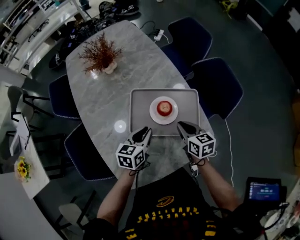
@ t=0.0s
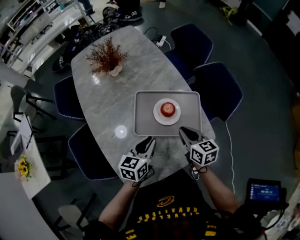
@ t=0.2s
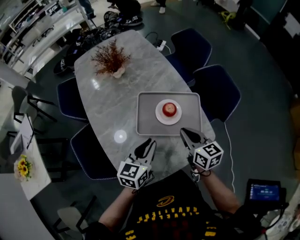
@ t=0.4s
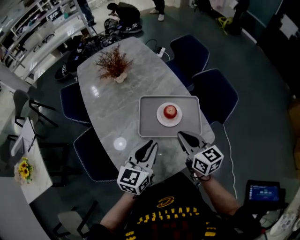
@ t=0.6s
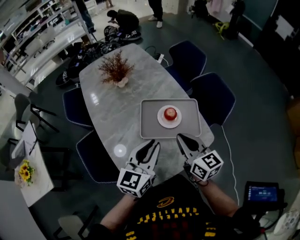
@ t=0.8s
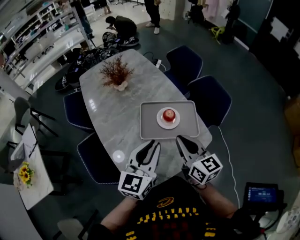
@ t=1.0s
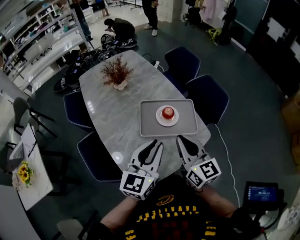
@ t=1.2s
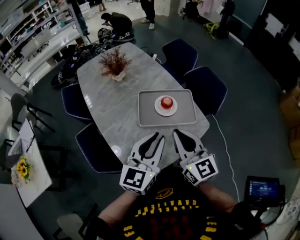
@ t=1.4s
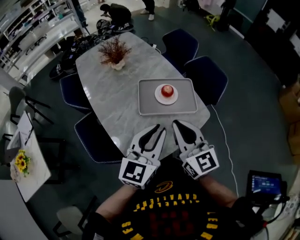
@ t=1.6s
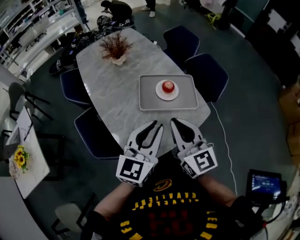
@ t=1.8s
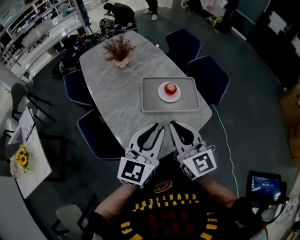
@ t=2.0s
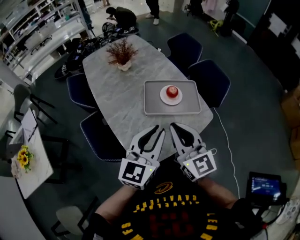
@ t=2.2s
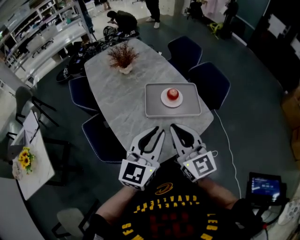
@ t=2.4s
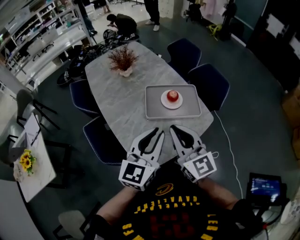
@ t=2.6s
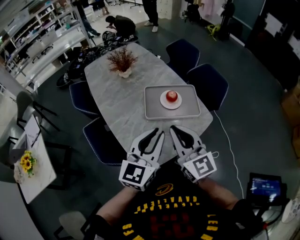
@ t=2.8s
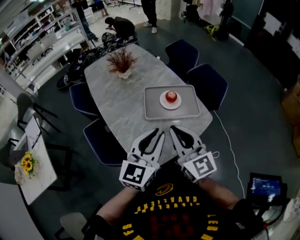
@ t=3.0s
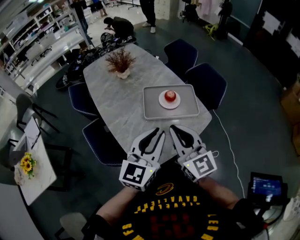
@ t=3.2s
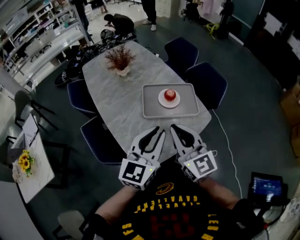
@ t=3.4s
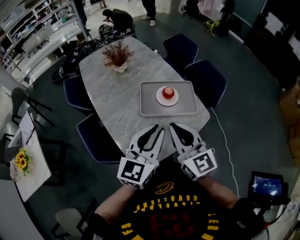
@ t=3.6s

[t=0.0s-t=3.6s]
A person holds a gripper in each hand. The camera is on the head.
t=0.0s to t=1.8s: The left gripper heads upward and backward, covering approximately 30 cm, and changes its angle by roughly 30 degrees, while the right gripper moves upward, backward and to the left, approximately 35 cm, and tips its fingers upward by roughly 30 degrees.
t=1.8s to t=3.6s: There are only small adjustments of the grippers.

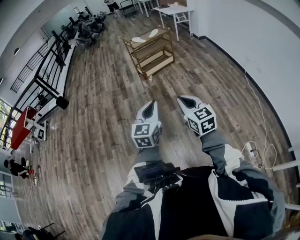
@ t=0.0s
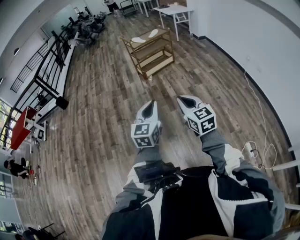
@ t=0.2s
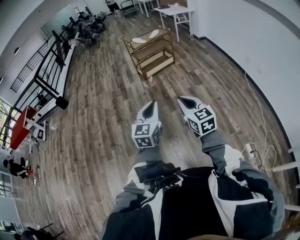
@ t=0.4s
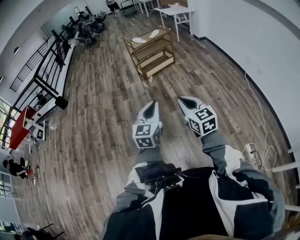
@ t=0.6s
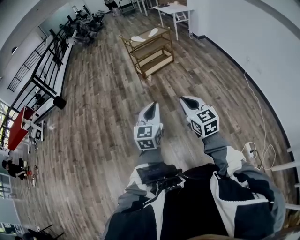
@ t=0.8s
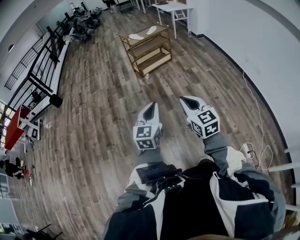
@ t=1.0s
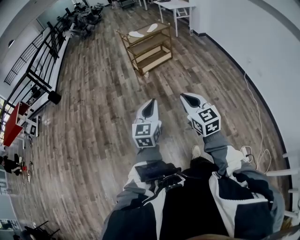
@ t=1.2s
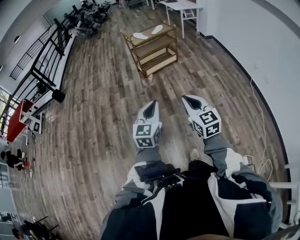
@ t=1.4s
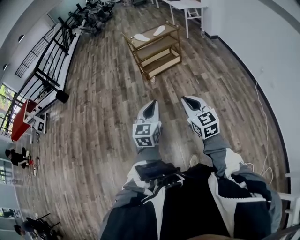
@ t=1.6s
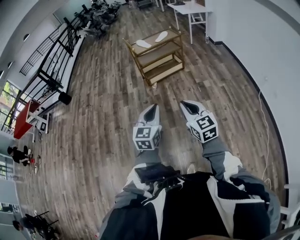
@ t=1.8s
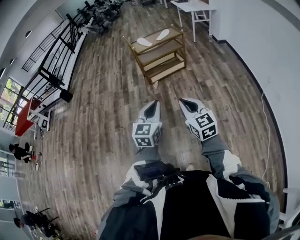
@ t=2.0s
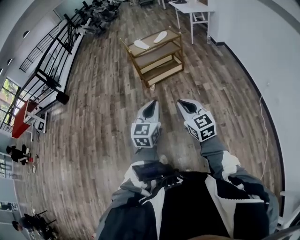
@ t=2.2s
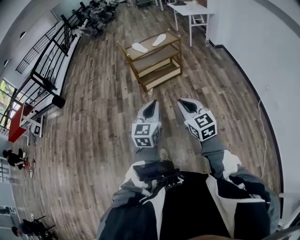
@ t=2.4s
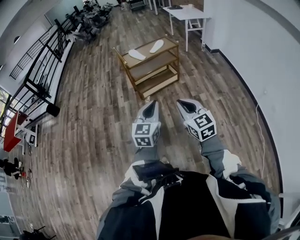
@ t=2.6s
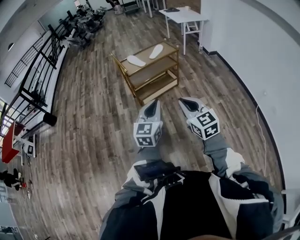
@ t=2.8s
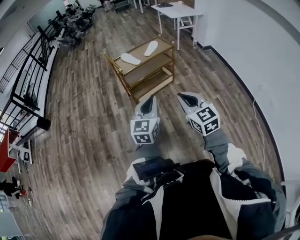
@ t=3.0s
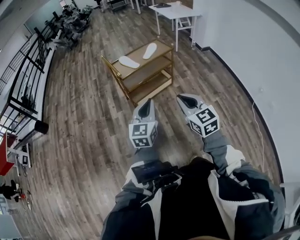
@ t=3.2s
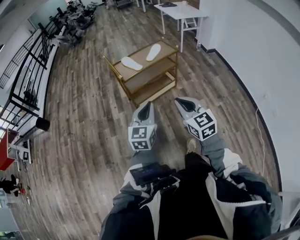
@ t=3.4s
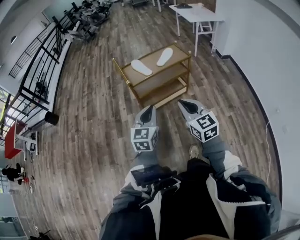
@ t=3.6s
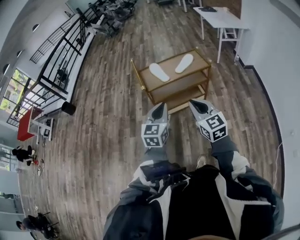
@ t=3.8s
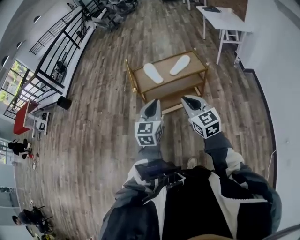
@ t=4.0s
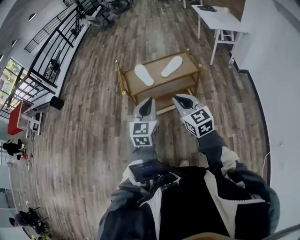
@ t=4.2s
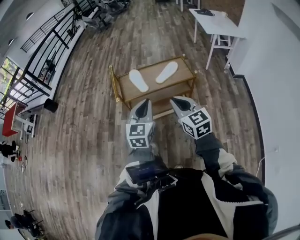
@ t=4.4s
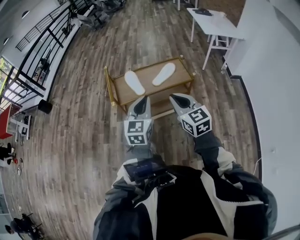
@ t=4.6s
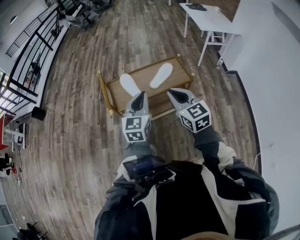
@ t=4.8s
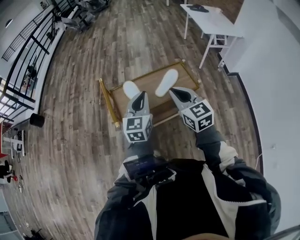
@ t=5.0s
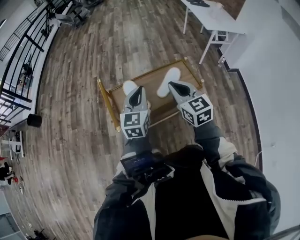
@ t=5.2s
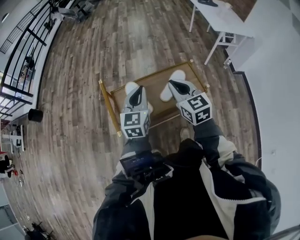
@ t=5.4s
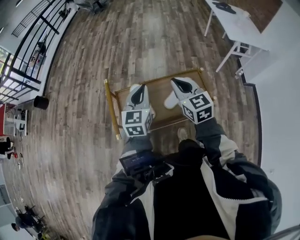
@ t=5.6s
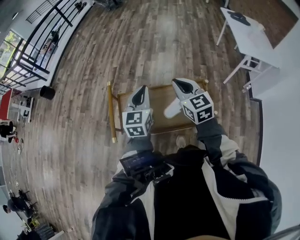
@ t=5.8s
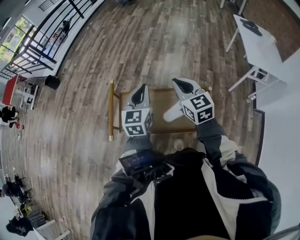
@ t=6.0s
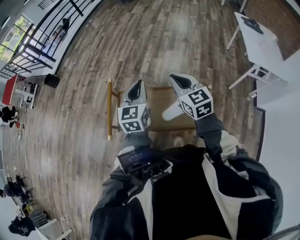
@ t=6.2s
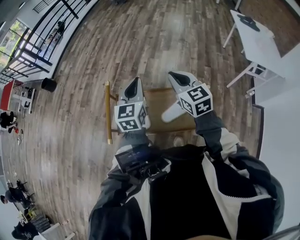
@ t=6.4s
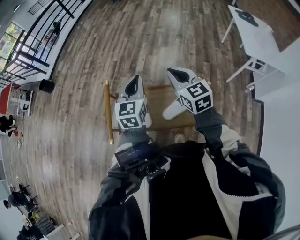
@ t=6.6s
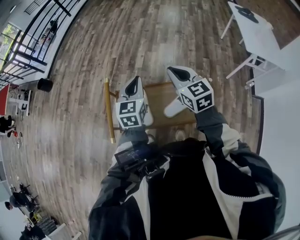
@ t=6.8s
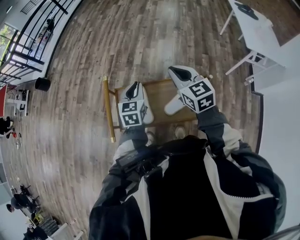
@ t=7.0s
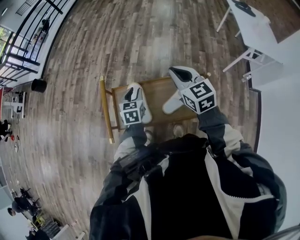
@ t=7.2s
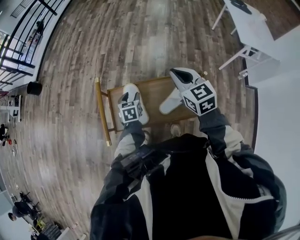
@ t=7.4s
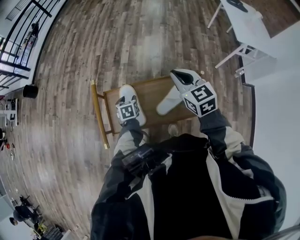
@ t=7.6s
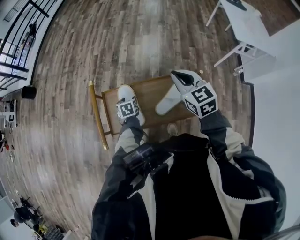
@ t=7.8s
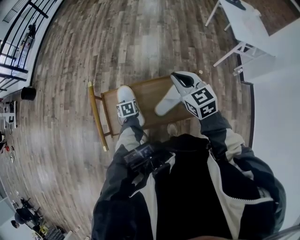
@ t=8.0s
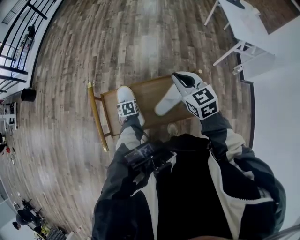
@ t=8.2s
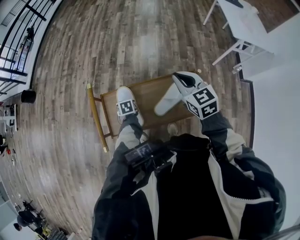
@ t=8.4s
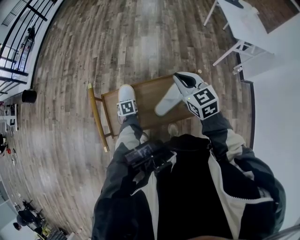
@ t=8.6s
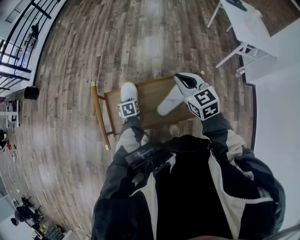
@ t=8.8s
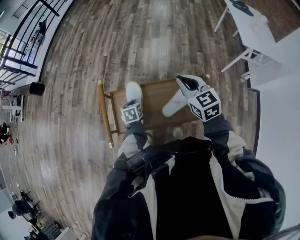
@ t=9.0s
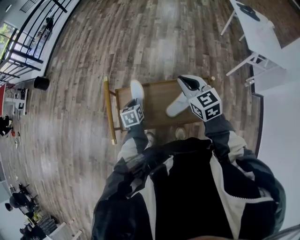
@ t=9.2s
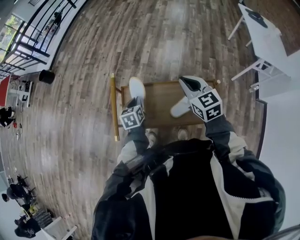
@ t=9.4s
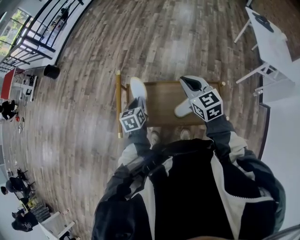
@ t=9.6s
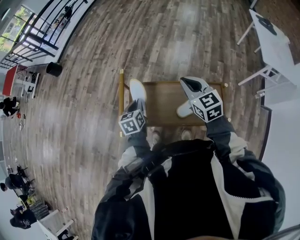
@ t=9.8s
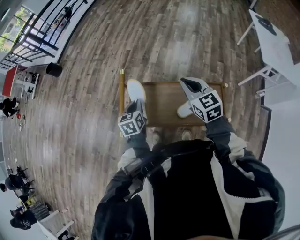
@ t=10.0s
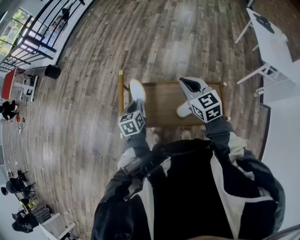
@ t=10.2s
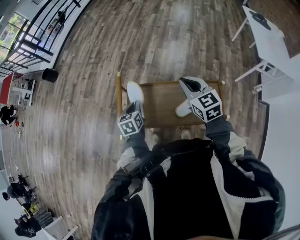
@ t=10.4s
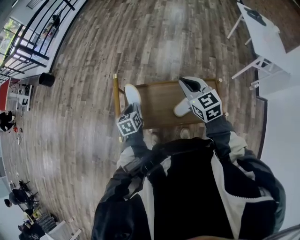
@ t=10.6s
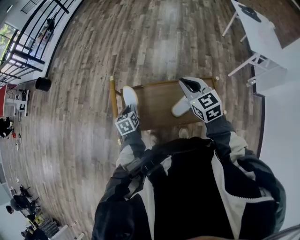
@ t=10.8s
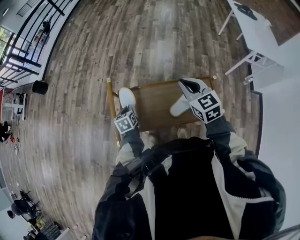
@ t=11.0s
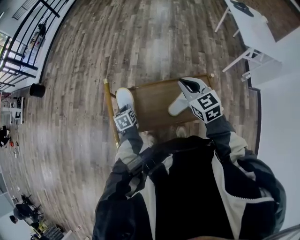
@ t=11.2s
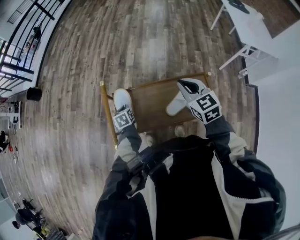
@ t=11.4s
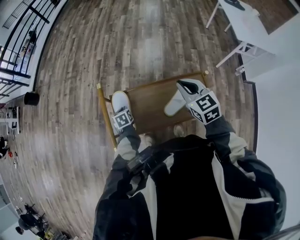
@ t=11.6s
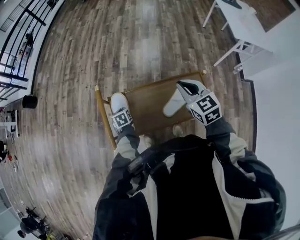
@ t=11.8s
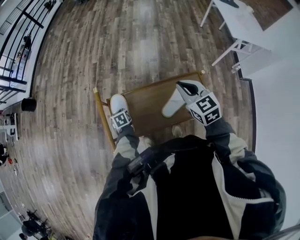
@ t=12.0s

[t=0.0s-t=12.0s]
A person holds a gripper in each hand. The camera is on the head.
t=0.0s to t=1.6s: The right gripper travels forward and to the right by about 25 cm, while the left gripper travels forward by roughly 20 cm.
t=1.6s to t=3.0s: Both grippers move forward, roughly 40 cm.
t=3.0s to t=4.4s: The left gripper goes roughly 35 cm forward and to the right, and swivels some 20 degrees; the right gripper travels forward by roughly 40 cm, and turns by roughly 20 degrees.
t=4.4s to t=6.0s: The pair of grippers is taken forward, roughly 40 cm.
t=6.0s to t=7.6s: The right gripper moves approximately 5 cm. The left gripper goes some 30 cm downward, tilts its fingers some 40 degrees downward, and opens.
t=7.6s to t=9.0s: The left gripper closes.
t=9.0s to t=10.4s: The left gripper moves upward and to the left, some 15 cm; the right gripper moves to the left, some 5 cm.
t=10.4s to t=12.0s: The left gripper is displaced downward by approximately 15 cm, and turns by about 20 degrees. Meanwhile the right gripper shifts roughly 5 cm to the right.

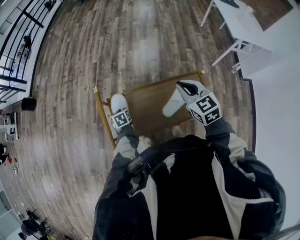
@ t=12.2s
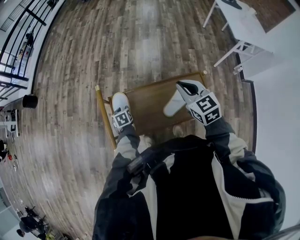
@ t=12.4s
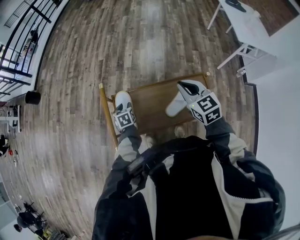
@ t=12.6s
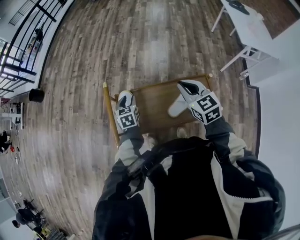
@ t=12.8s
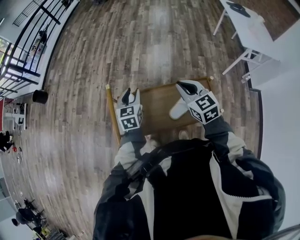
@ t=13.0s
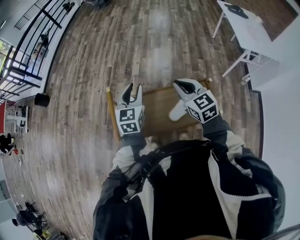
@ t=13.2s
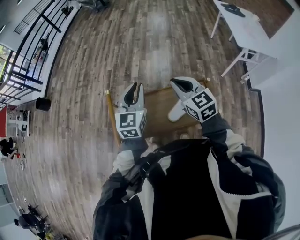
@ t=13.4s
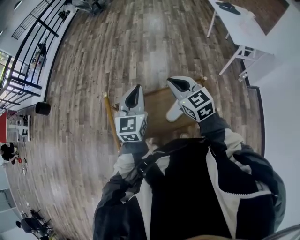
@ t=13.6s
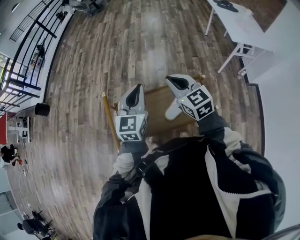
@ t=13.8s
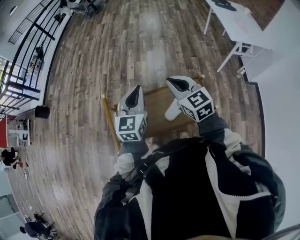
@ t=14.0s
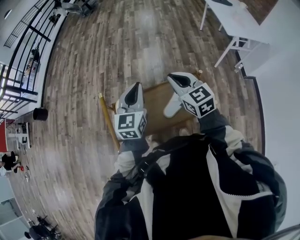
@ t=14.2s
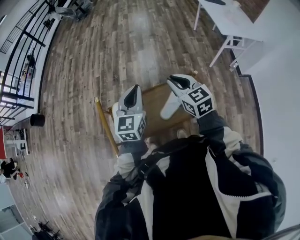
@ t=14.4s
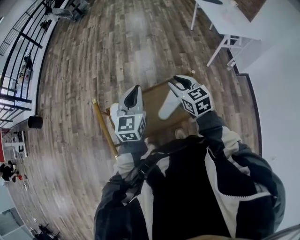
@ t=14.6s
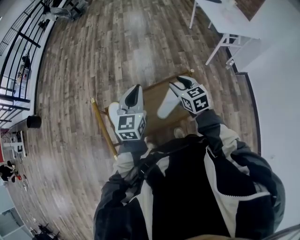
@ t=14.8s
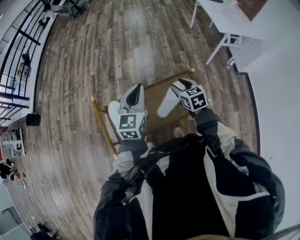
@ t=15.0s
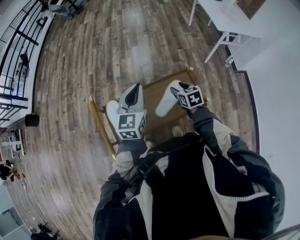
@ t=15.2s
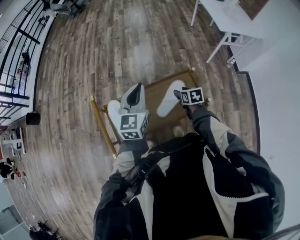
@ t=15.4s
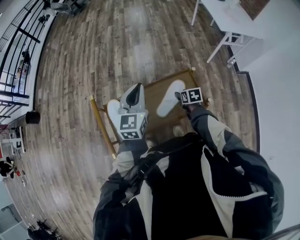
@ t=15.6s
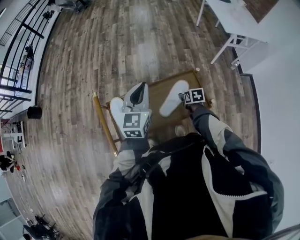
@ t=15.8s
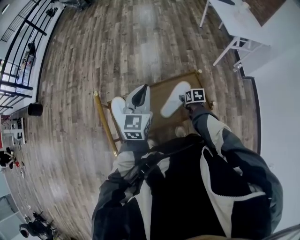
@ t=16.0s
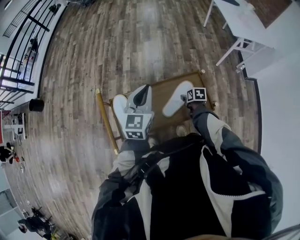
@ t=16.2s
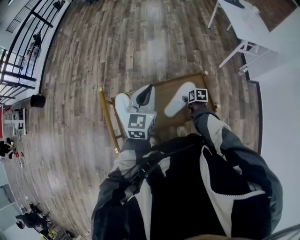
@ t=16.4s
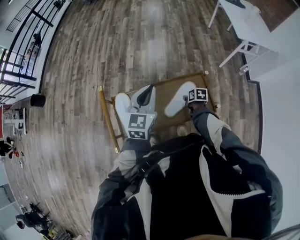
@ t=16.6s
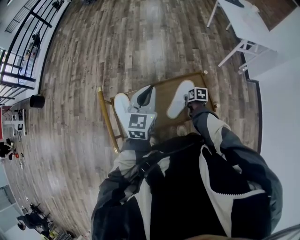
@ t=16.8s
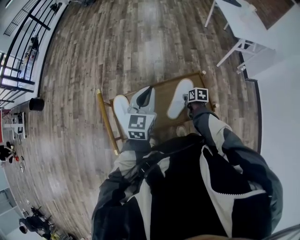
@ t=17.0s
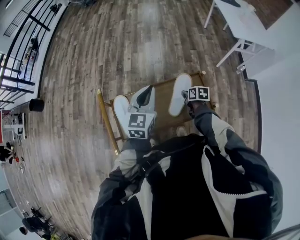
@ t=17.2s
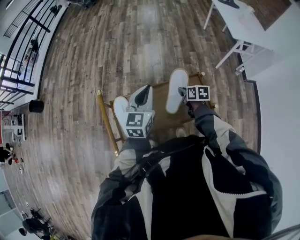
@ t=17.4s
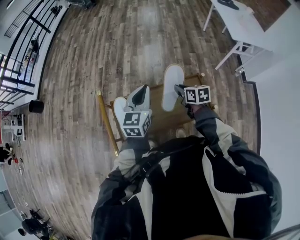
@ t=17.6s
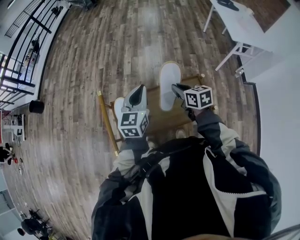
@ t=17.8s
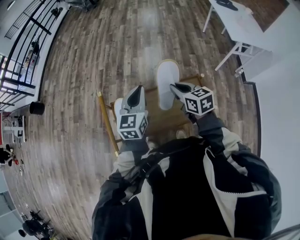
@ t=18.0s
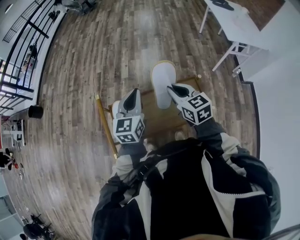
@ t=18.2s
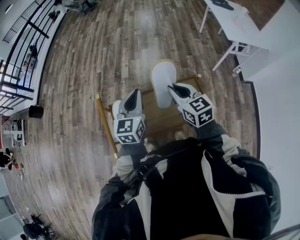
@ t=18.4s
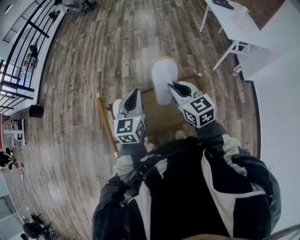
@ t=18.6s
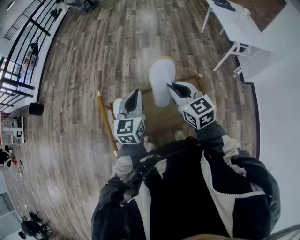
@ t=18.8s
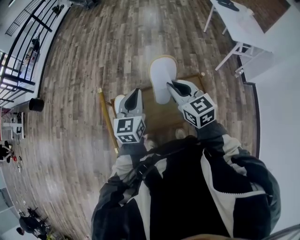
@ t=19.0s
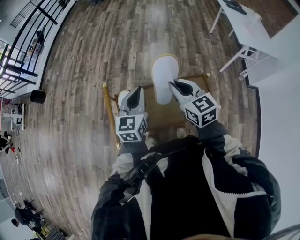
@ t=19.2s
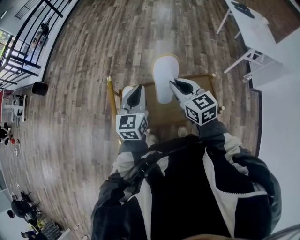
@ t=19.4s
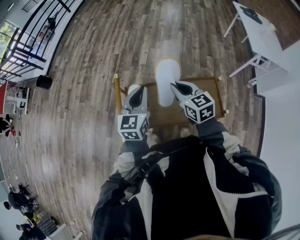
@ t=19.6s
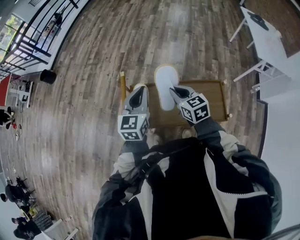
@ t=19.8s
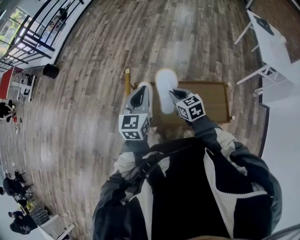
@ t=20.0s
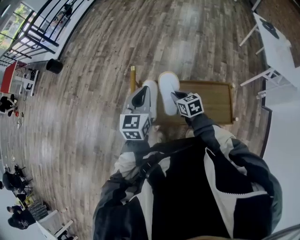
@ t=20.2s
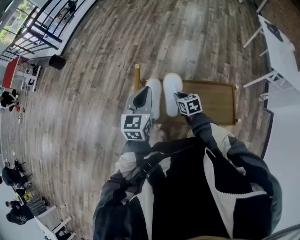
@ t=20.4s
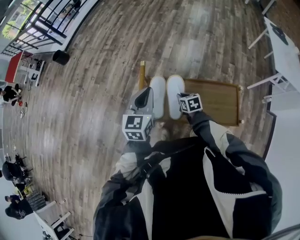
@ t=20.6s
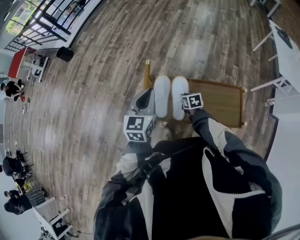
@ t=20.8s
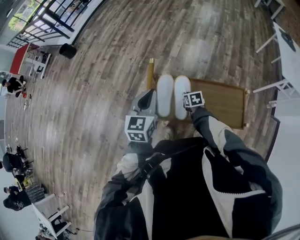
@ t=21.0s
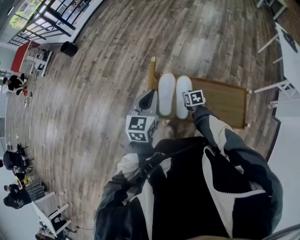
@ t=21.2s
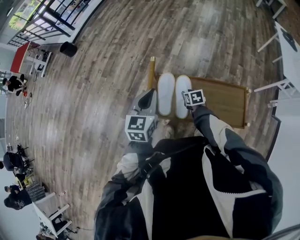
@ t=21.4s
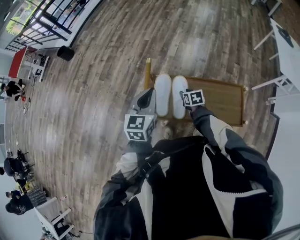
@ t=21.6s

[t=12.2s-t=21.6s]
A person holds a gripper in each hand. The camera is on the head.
t=12.2s to t=13.8s: The right gripper heads upward, covering approximately 5 cm. Meanwhile the left gripper shifts about 40 cm upward and to the right, tilts its fingers approximately 50 degrees upward, and closes its fingers.
t=13.8s to t=15.4s: The left gripper moves about 5 cm. Meanwhile the right gripper is displaced downward and to the right by roughly 30 cm, tilts its fingers some 30 degrees downward, and opens up.
t=15.4s to t=17.0s: The right gripper travels downward by approximately 10 cm, and closes up.
t=17.0s to t=18.4s: The left gripper ends up about 5 cm from where it was. The right gripper heads upward, covering approximately 30 cm, and angles its fingers upward, by roughly 30 degrees.
t=18.4s to t=20.0s: The left gripper is displaced to the left by some 10 cm. Meanwhile the right gripper moves to the left and downward, approximately 20 cm, and swivels approximately 20 degrees.
t=20.0s to t=21.6s: The right gripper moves downward, roughly 15 cm, changes its angle by roughly 20 degrees, and opens its fingers; the left gripper moves to the left, approximately 5 cm.
